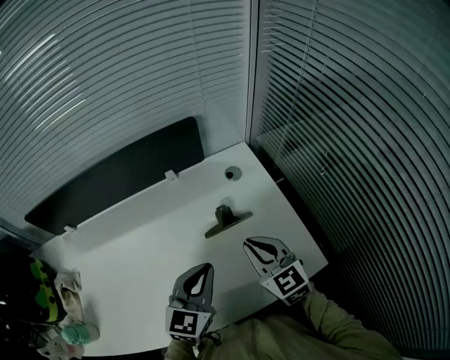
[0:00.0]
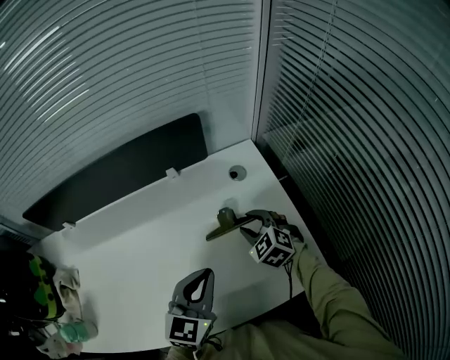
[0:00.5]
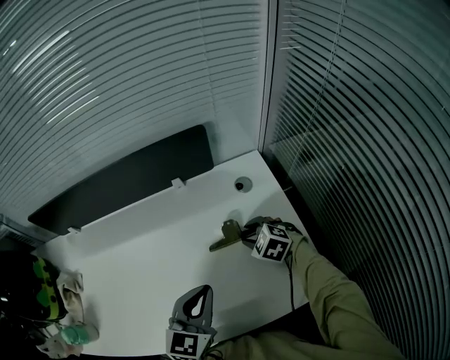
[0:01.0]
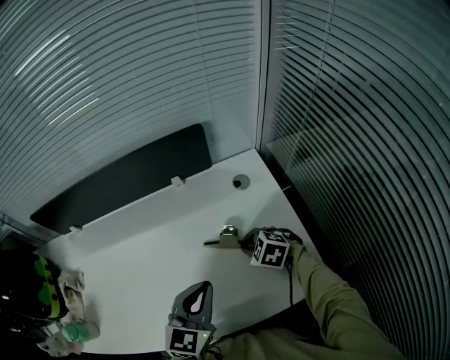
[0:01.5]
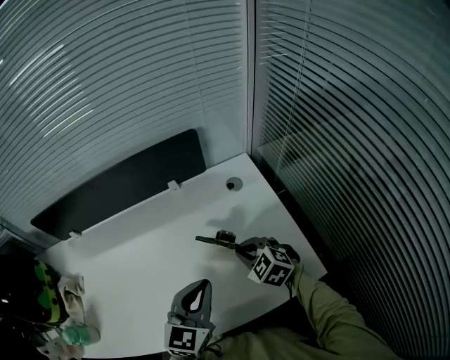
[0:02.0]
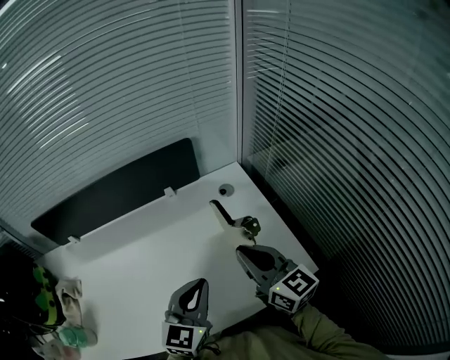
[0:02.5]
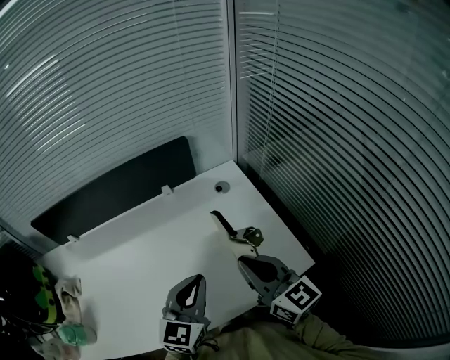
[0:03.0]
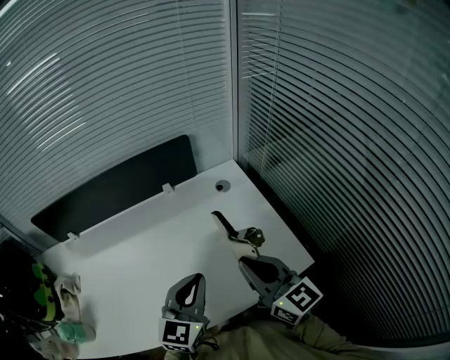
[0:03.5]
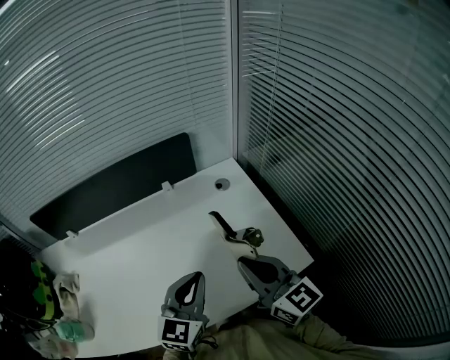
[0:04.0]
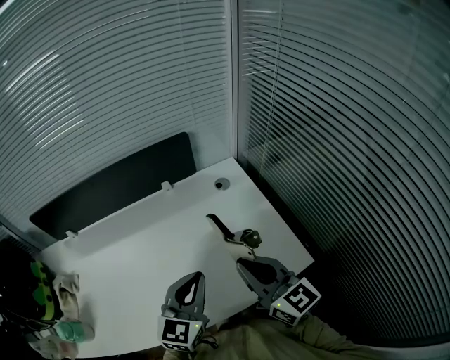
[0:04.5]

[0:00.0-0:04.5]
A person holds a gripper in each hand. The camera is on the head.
0:00.0 to 0:02.0: The right gripper is displaced downward by approximately 10 cm, turns by roughly 30 degrees, and opens, then closes once more.
0:02.0 to 0:04.5: The right gripper is displaced upward and backward by some 20 cm, and points its fingers approximately 40 degrees further upward.

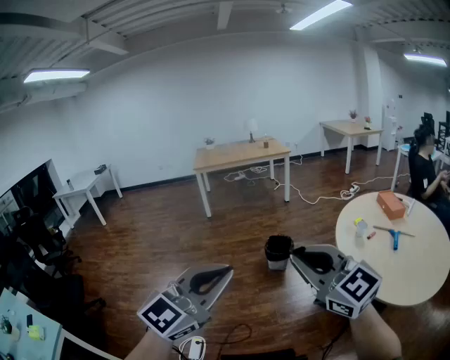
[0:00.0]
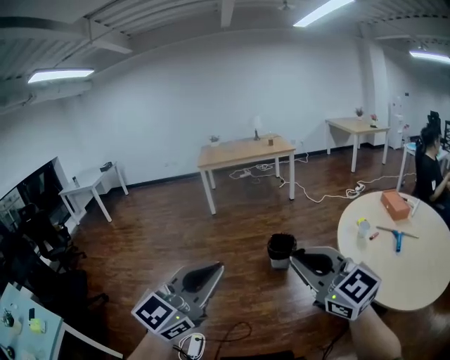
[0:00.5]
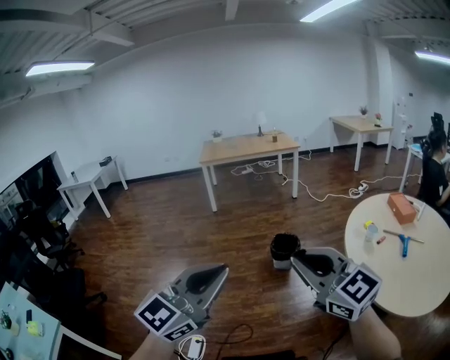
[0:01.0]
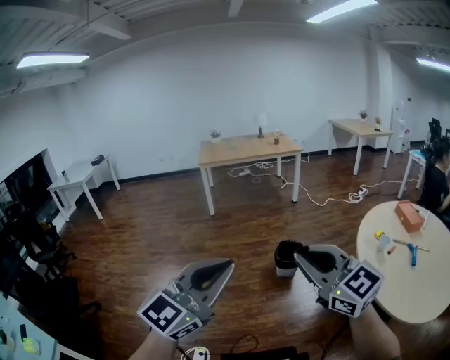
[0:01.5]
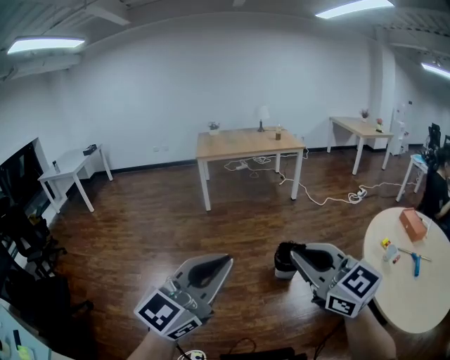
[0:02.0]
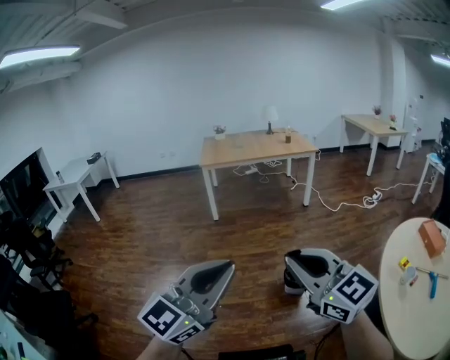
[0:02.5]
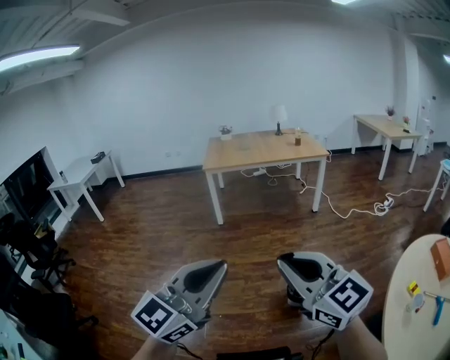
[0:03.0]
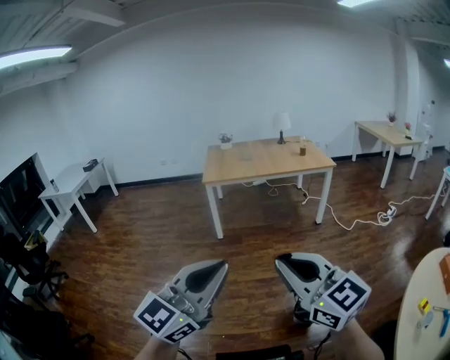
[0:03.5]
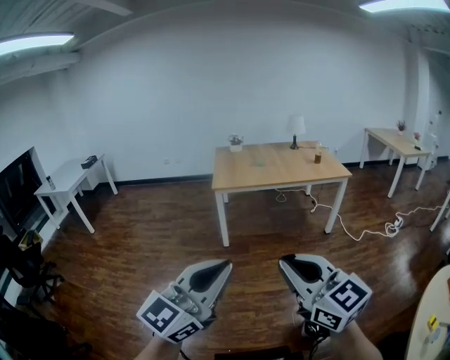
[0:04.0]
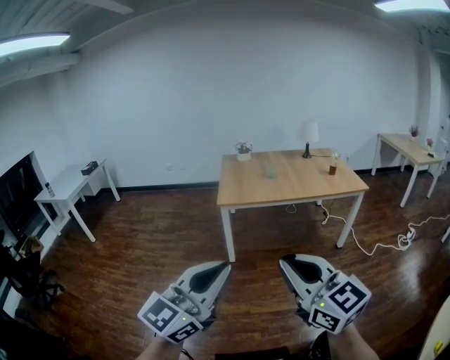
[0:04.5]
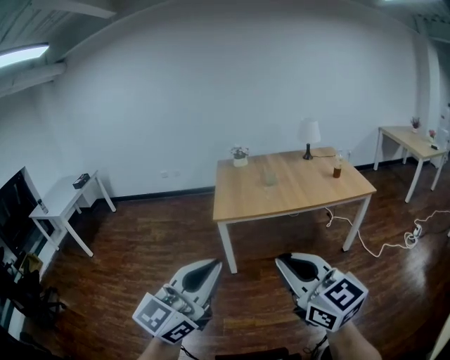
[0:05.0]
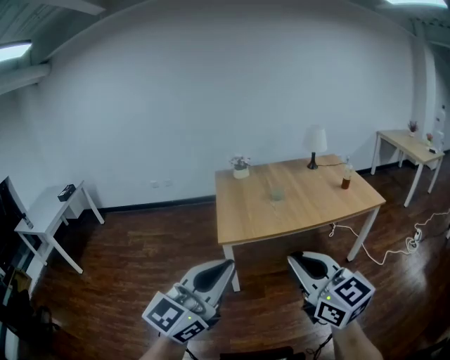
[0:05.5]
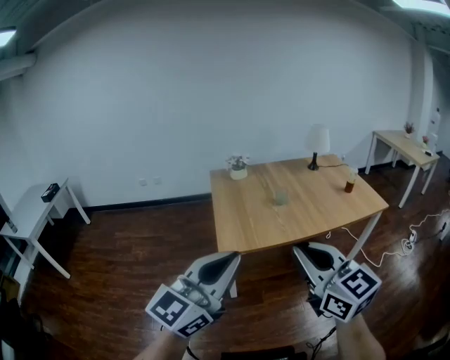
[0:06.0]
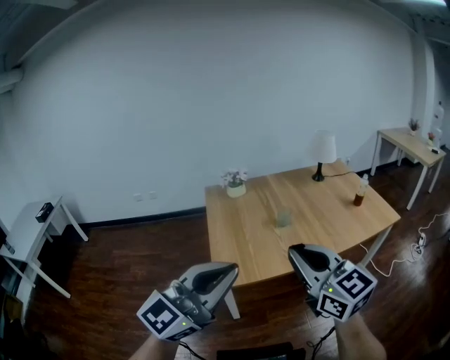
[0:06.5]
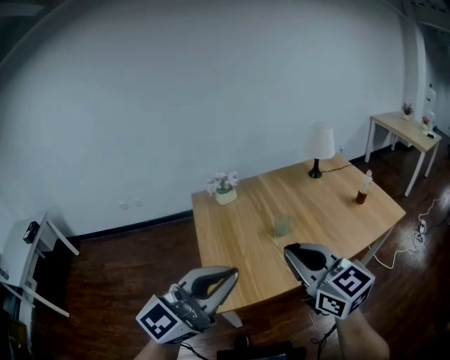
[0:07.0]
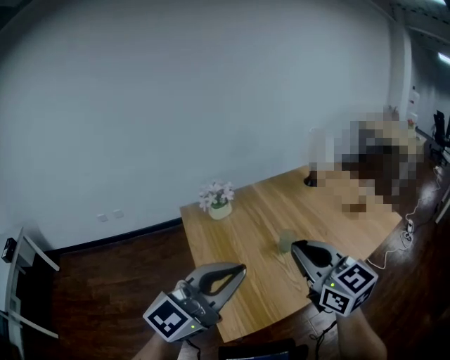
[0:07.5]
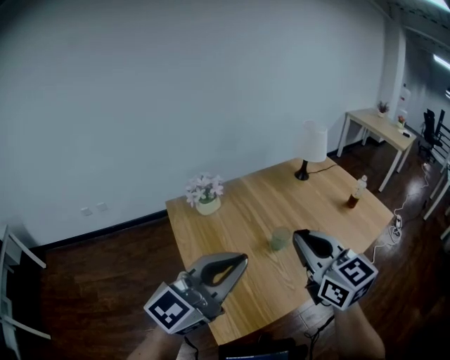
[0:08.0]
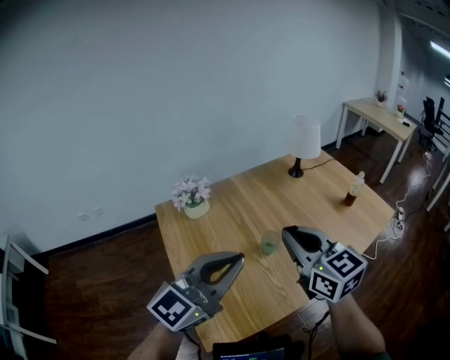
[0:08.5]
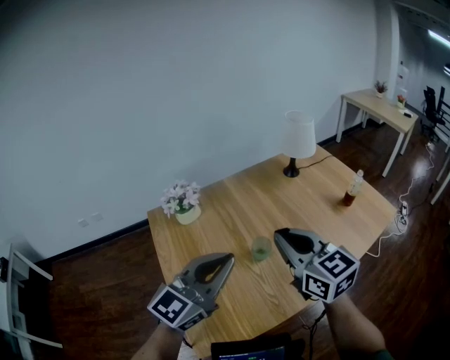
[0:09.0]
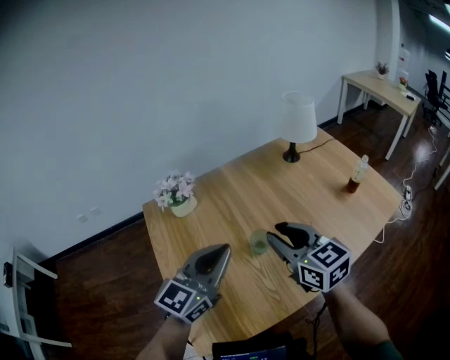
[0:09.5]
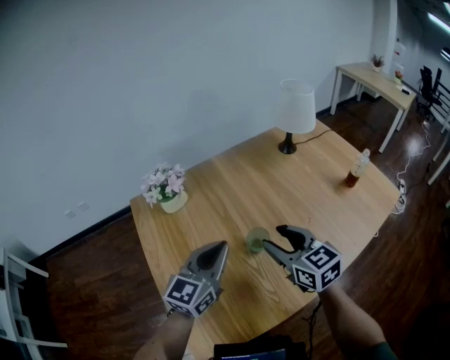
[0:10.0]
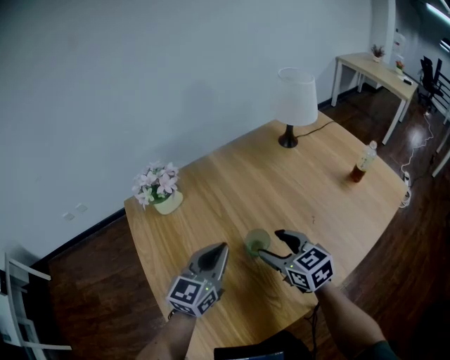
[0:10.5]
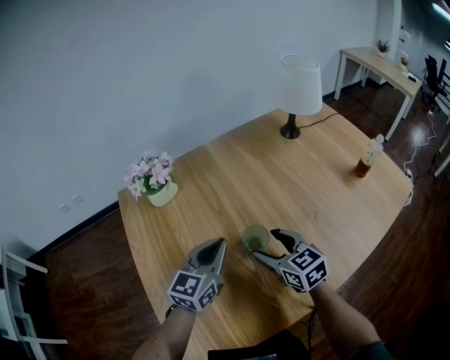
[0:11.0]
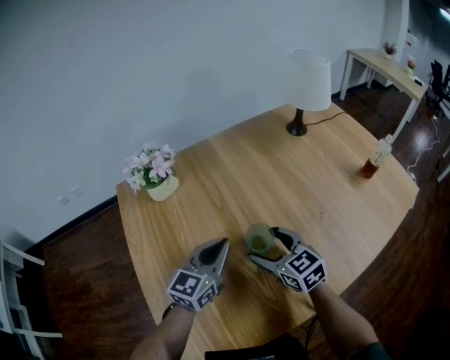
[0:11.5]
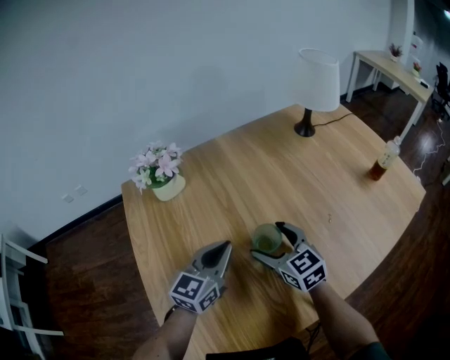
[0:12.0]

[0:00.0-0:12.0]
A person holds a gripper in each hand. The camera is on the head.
0:00.0 to 0:02.0: The two grippers go about 30 cm forward and to the left.
0:02.0 to 0:04.0: The two grippers travel together, forward, roughly 60 cm.
0:04.0 to 0:06.0: The pair of grippers is taken forward, about 60 cm.
0:06.0 to 0:08.0: Both grippers are carried forward, approximately 50 cm. The left gripper changes its angle by roughly 20 degrees.
0:08.0 to 0:10.0: The left gripper is displaced forward and downward by approximately 30 cm, and swivels approximately 30 degrees. The right gripper is displaced downward and forward by about 25 cm, and opens up.
0:10.0 to 0:12.0: Both grippers travel together downward, roughly 15 cm. The right gripper opens its fingers.

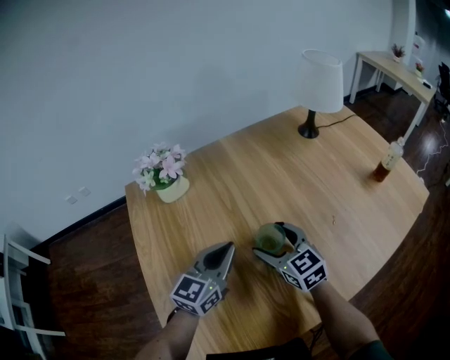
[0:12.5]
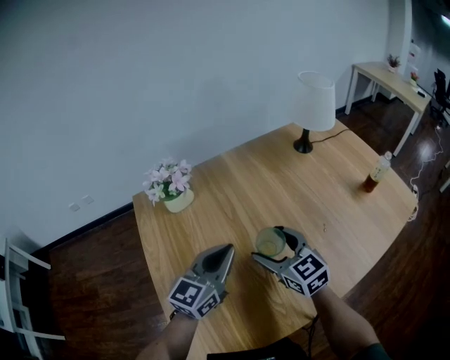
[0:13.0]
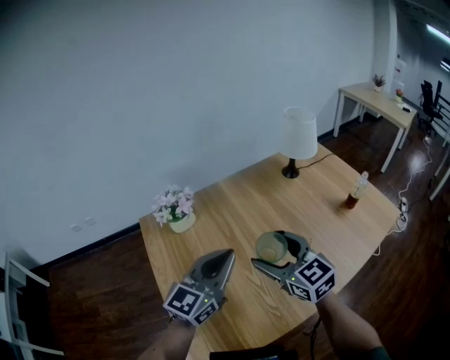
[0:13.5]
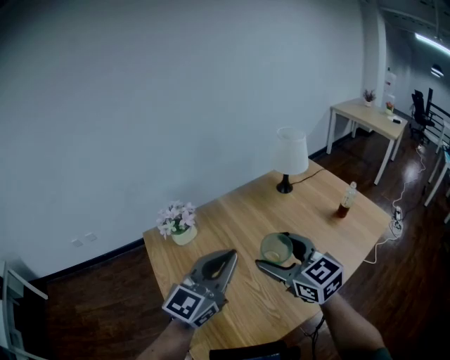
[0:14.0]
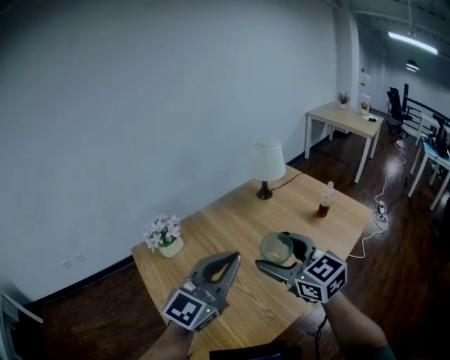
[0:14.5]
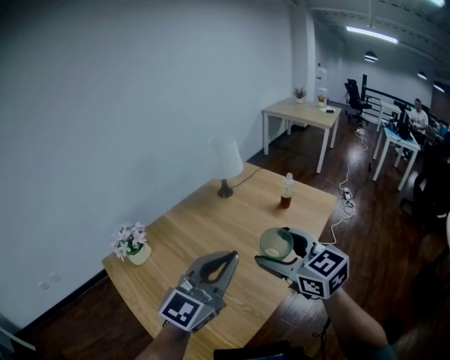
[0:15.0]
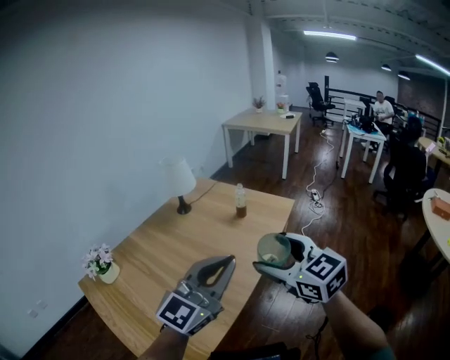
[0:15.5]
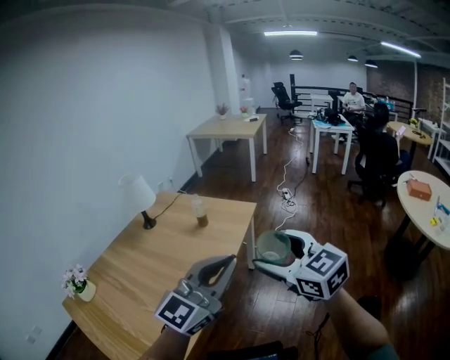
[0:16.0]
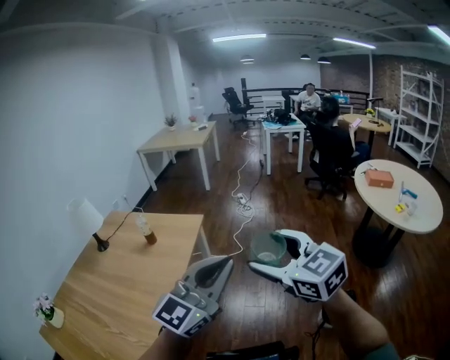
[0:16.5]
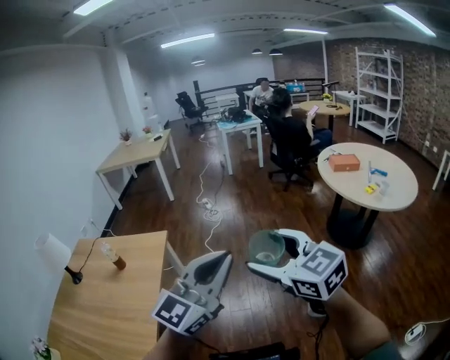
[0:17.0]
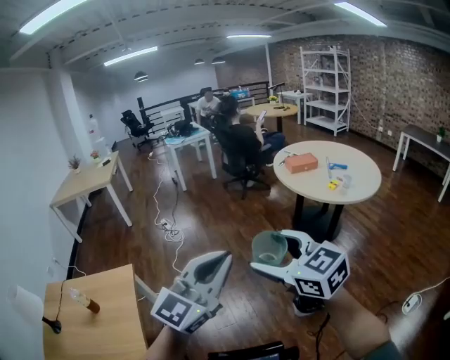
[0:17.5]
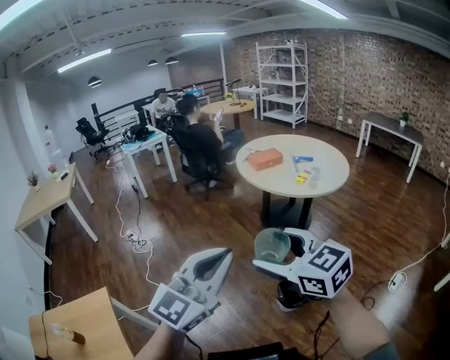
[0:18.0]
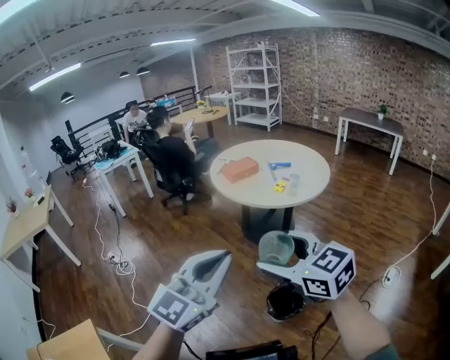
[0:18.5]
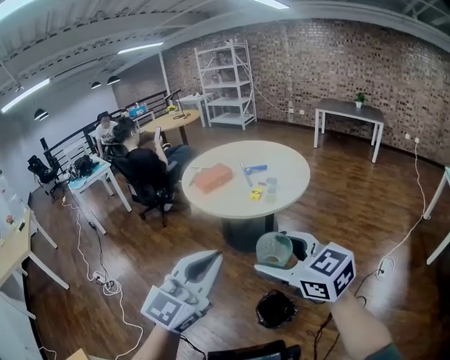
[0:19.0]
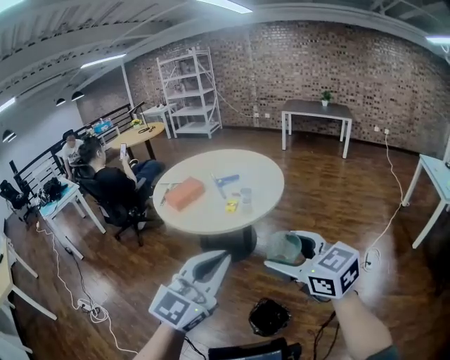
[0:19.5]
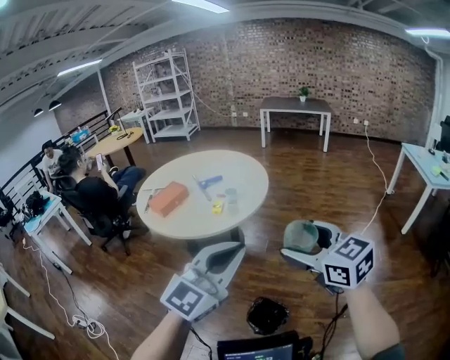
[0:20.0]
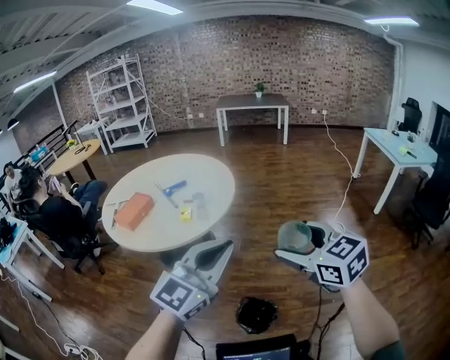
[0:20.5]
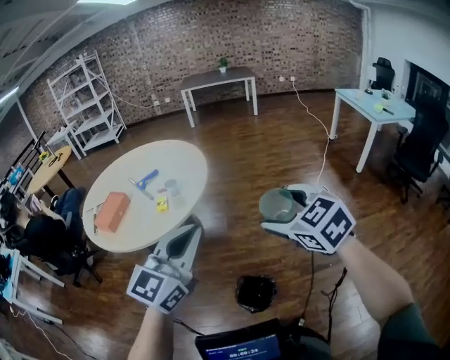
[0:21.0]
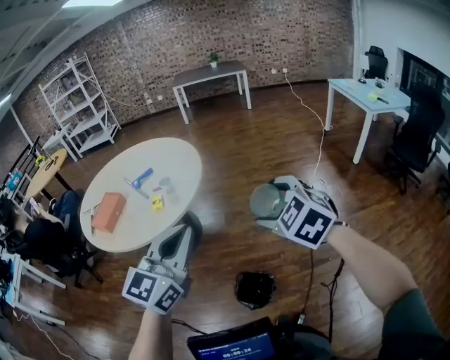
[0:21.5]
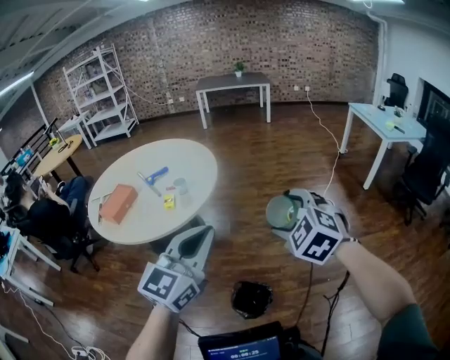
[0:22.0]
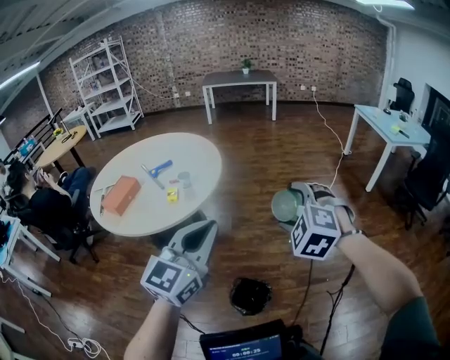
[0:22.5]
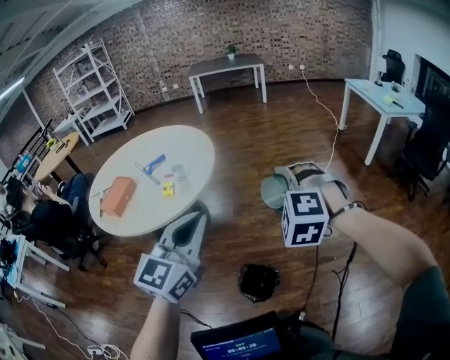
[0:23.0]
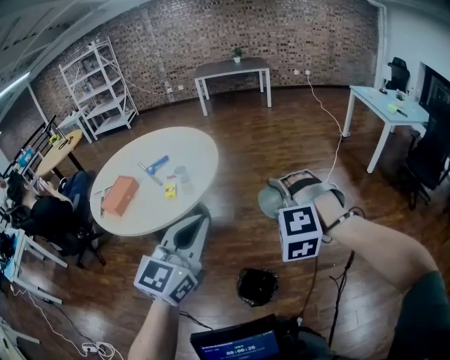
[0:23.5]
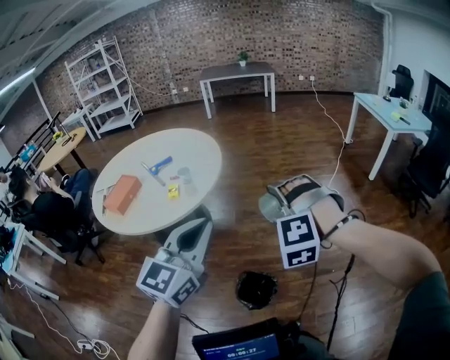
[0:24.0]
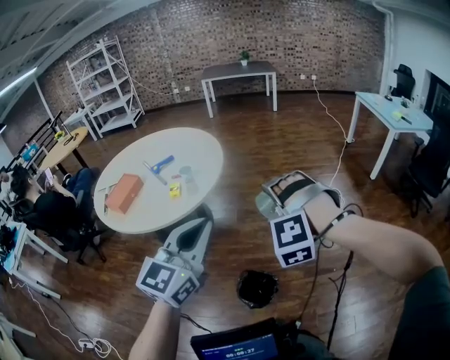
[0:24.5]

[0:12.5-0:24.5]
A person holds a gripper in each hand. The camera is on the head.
0:12.5 to 0:14.5: The right gripper goes some 30 cm upward; the left gripper heads upward and backward, covering some 35 cm, and swivels approximately 30 degrees.
0:14.5 to 0:16.5: The two grippers travel together, approximately 60 cm. The right gripper rotates about 40 degrees. Meanwhile the left gripper rotates roughly 50 degrees.
0:16.5 to 0:18.5: The right gripper ends up about 40 cm from where it was, and turns by about 50 degrees, while the left gripper moves roughly 40 cm, and turns by about 50 degrees.
0:18.5 to 0:20.5: The left gripper moves some 30 cm, and turns by some 40 degrees; the right gripper moves about 25 cm, and rotates about 50 degrees.
0:20.5 to 0:22.5: The right gripper travels forward by about 5 cm, and twists about 50 degrees counterclockwise, seen from behind.
0:22.5 to 0:24.5: The right gripper ends up approximately 5 cm from where it was, and swivels approximately 30 degrees.
